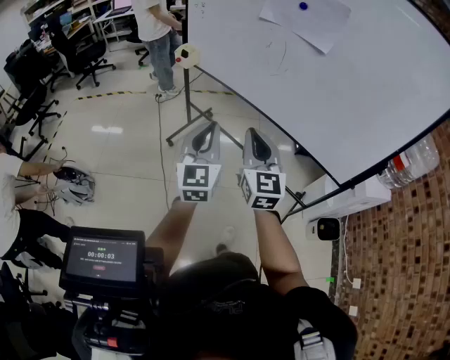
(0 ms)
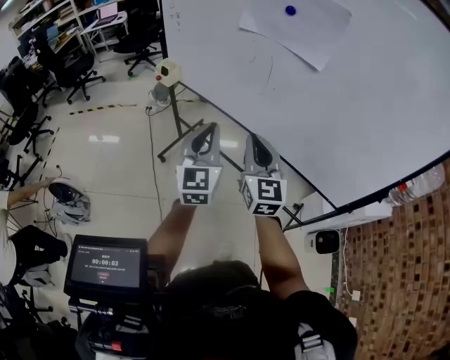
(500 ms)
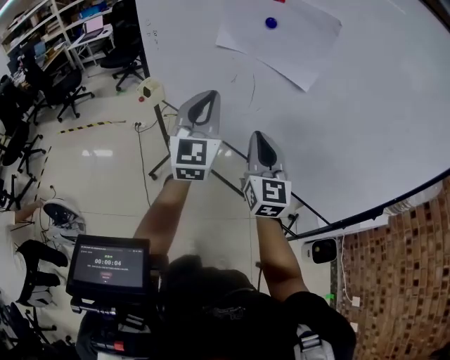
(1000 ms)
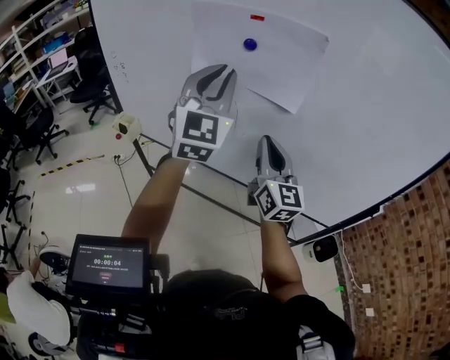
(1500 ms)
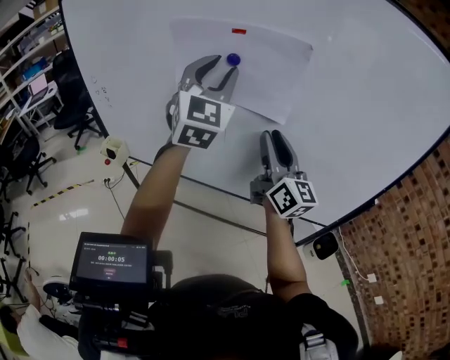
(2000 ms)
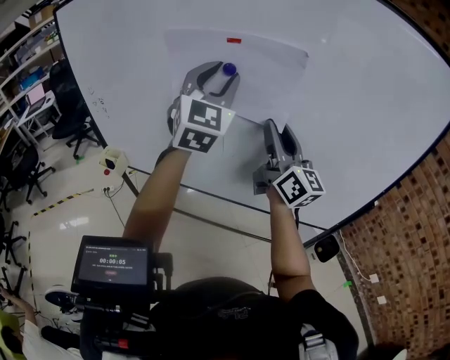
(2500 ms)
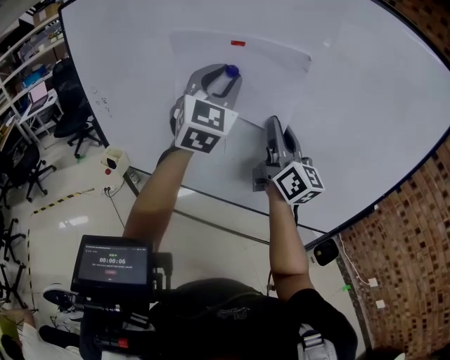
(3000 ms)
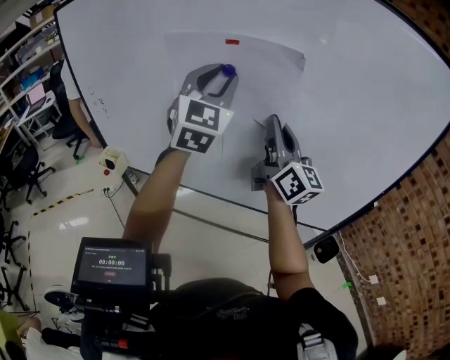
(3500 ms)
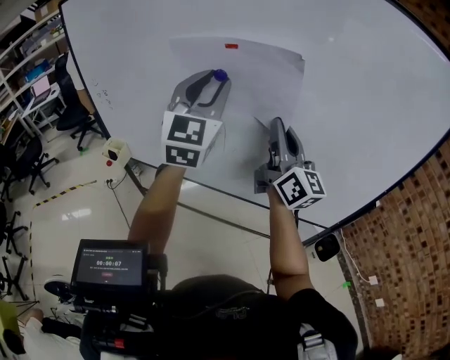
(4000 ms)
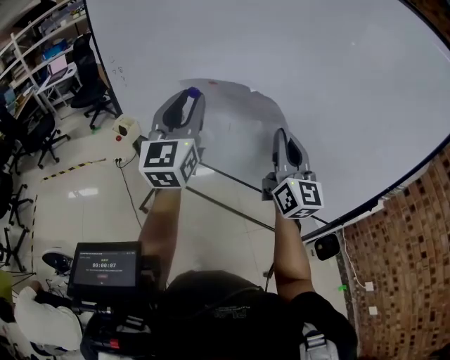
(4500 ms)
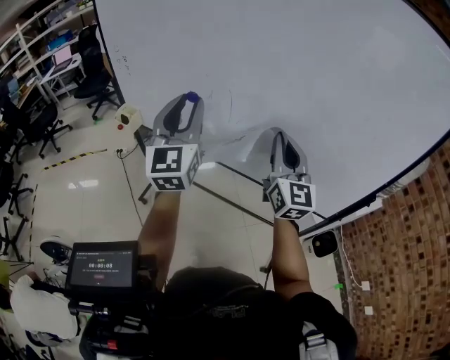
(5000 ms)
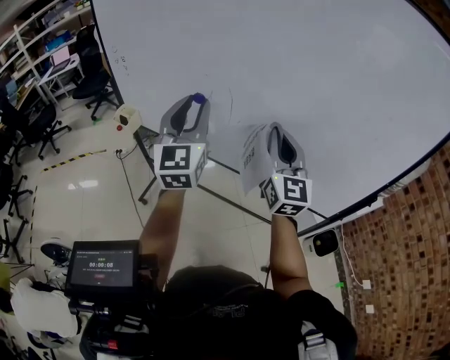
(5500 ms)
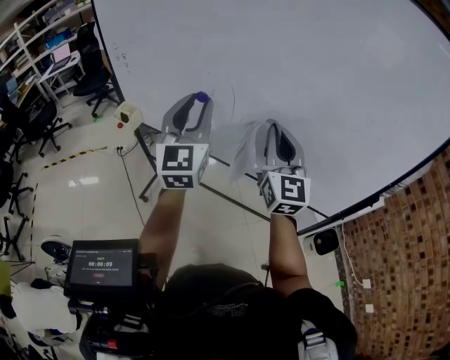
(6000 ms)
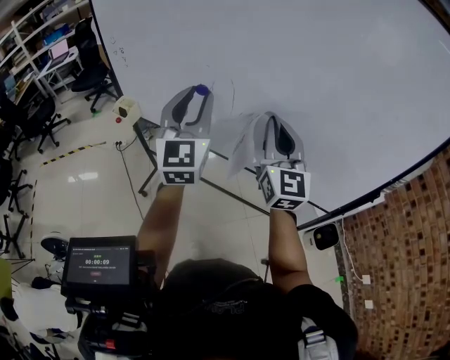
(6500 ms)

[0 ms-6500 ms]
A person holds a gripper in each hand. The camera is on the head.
0 ms to 2000 ms: The left gripper travels forward and upward by about 40 cm, turns by about 40 degrees, and opens; the right gripper heads forward, to the right and upward, covering about 35 cm, changes its angle by approximately 30 degrees, and opens its fingers.
2000 ms to 4500 ms: The right gripper closes its fingers, while the left gripper travels backward, downward and to the left by some 15 cm, and swivels roughly 30 degrees.
4500 ms to 6500 ms: The grippers move only a little.

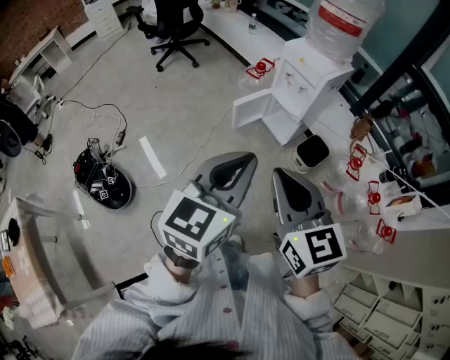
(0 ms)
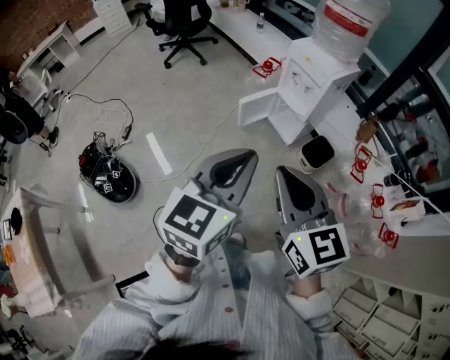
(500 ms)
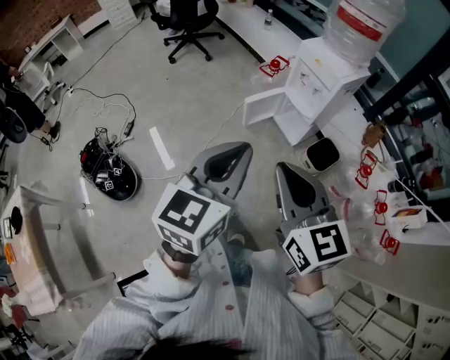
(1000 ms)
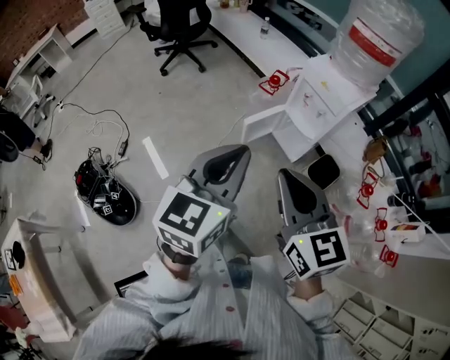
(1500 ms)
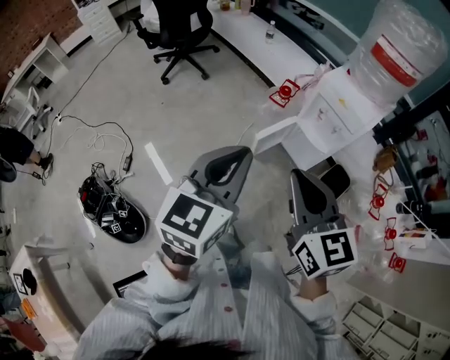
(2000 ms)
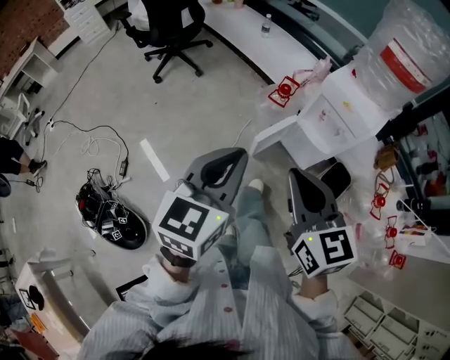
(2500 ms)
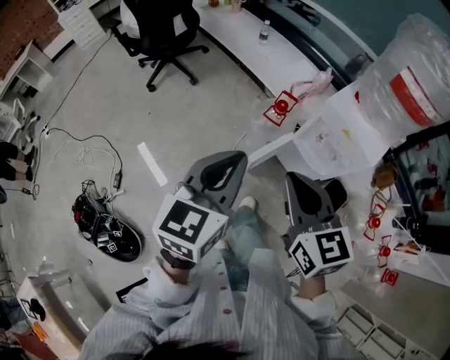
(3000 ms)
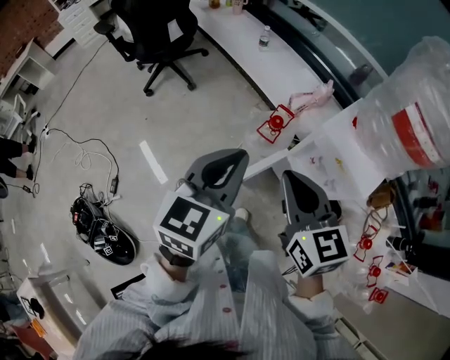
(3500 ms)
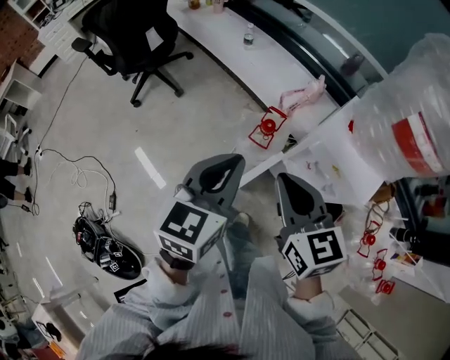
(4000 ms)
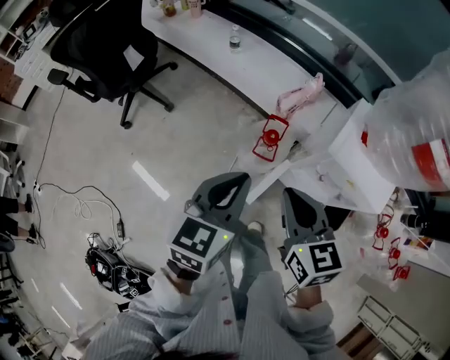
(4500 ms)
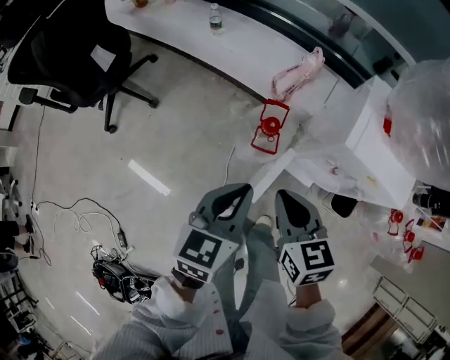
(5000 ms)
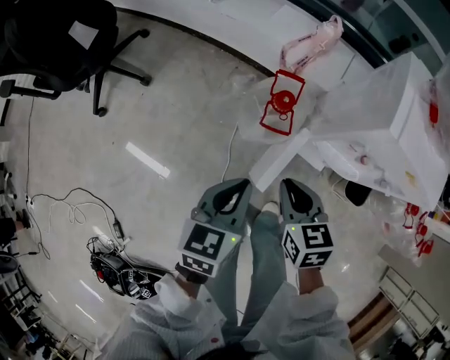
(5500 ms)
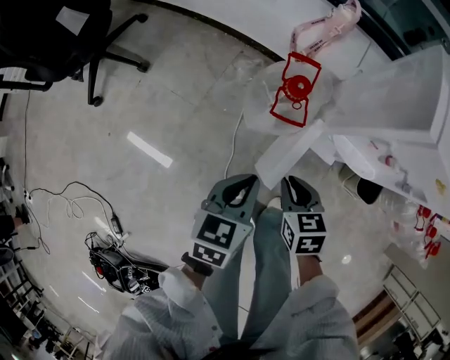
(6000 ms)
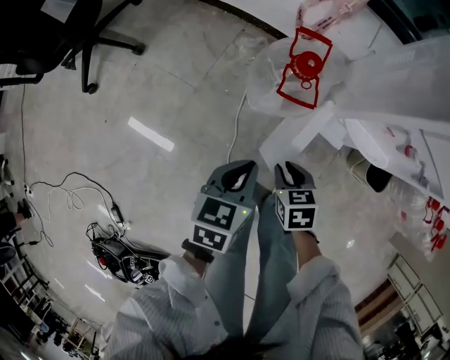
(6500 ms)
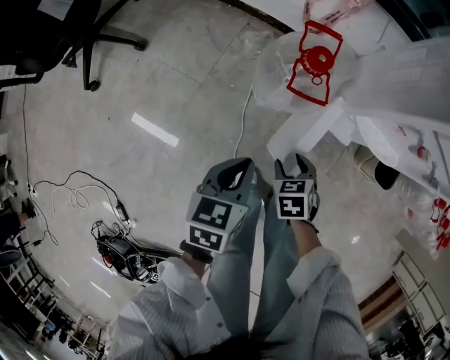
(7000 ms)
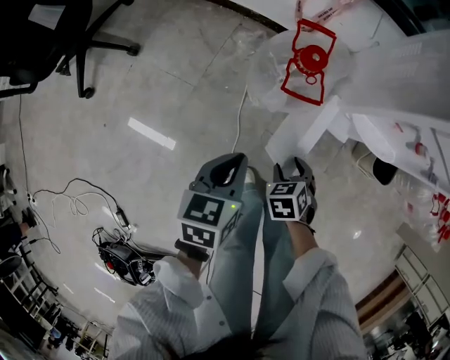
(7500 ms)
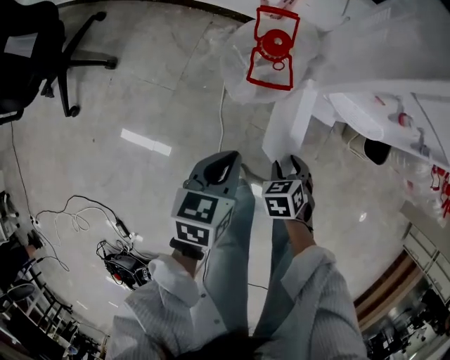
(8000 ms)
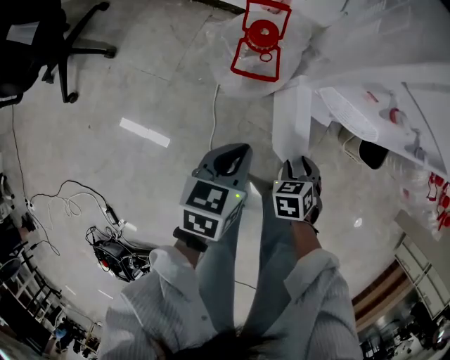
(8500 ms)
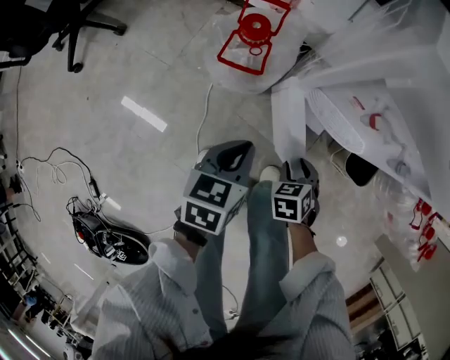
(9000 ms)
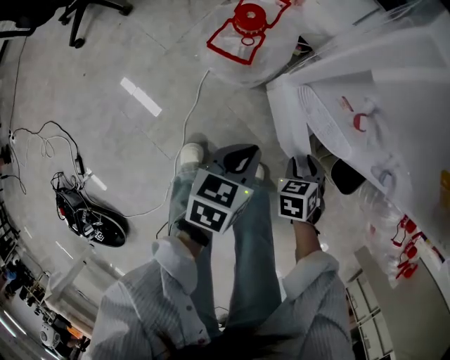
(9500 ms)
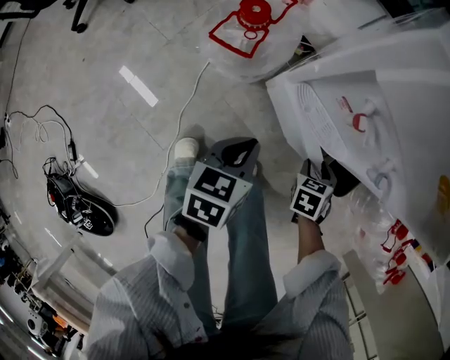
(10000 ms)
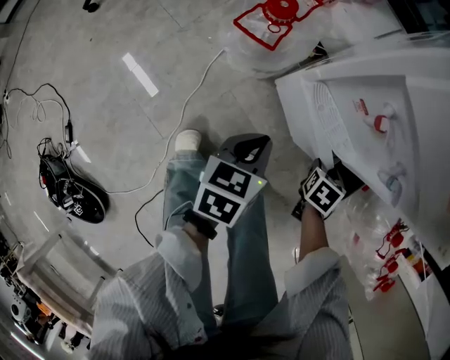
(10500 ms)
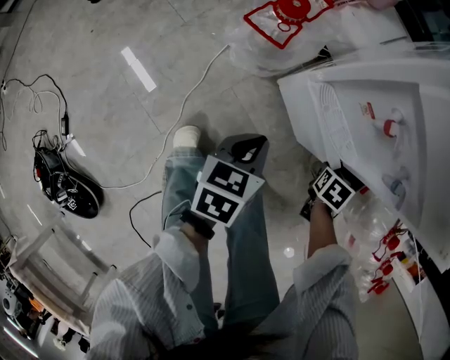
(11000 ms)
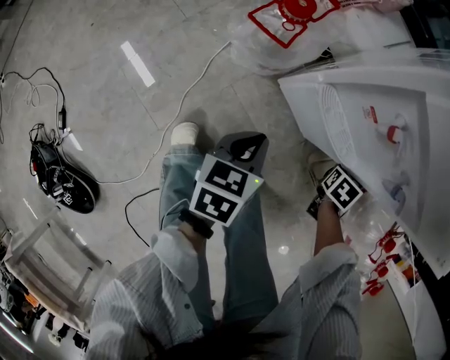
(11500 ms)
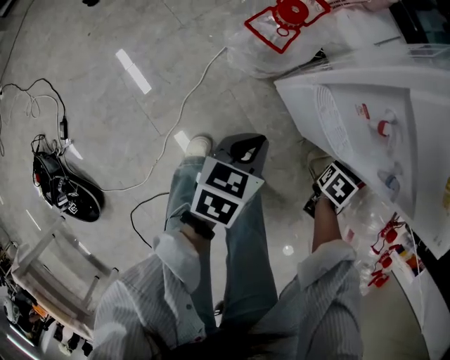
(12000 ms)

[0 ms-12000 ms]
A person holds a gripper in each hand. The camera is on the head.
0 ms to 2000 ms: Both grippers travel together forward and to the left, about 30 cm.
2000 ms to 4000 ms: The two grippers go about 35 cm forward.
4000 ms to 6000 ms: Both grippers travel together downward, some 40 cm. The left gripper rotates some 30 degrees; the right gripper angles its fingers downward, by some 30 degrees.
6000 ms to 8000 ms: The left gripper goes about 10 cm downward. The right gripper travels downward by roughly 15 cm, changes its angle by roughly 30 degrees, and opens up.
8000 ms to 10000 ms: The right gripper heads to the right and forward, covering approximately 30 cm. Meanwhile the left gripper goes approximately 20 cm to the right.
10000 ms to 12000 ms: The right gripper ends up some 5 cm from where it was, and closes its fingers.

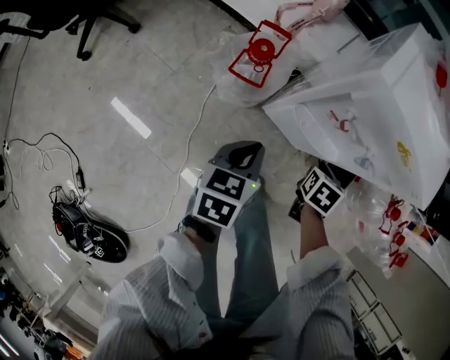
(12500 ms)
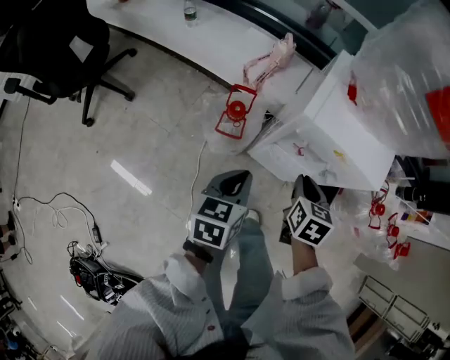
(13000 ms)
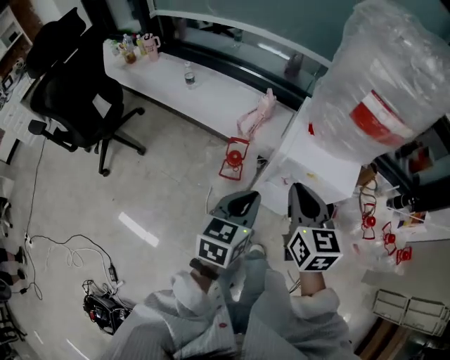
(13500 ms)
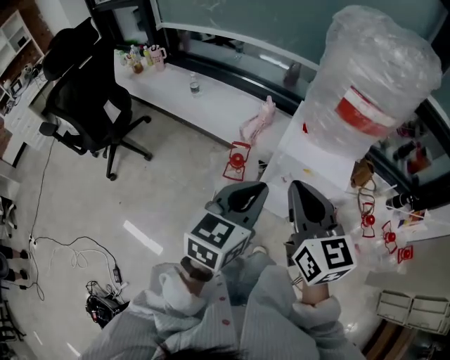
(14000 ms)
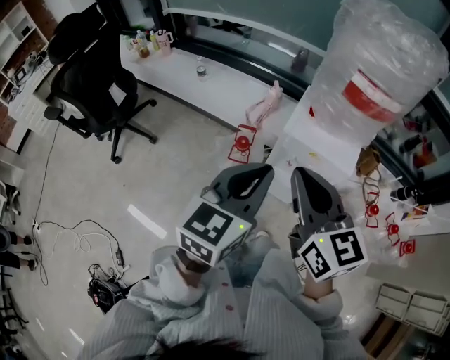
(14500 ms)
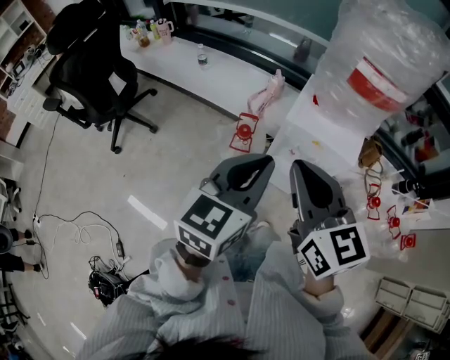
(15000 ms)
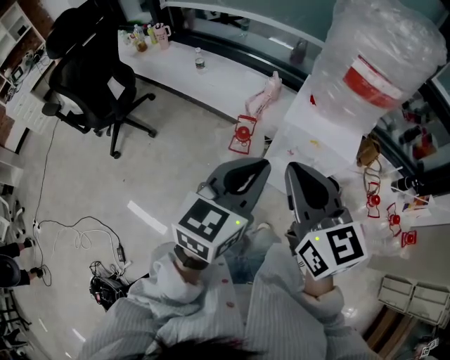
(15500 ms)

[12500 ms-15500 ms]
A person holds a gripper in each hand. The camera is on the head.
12500 ms to 14000 ms: The grippers both shift upward by some 50 cm. The right gripper tips its fingers upward by some 50 degrees, while the left gripper swivels about 30 degrees.
14000 ms to 15500 ms: The left gripper shifts by roughly 5 cm. The right gripper shifts about 5 cm backward.

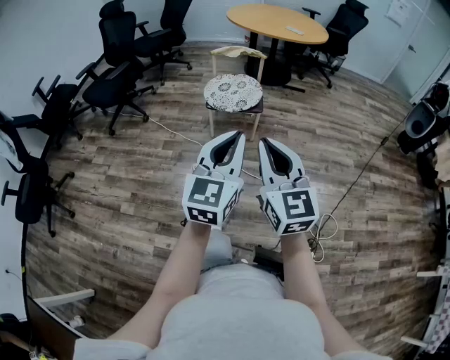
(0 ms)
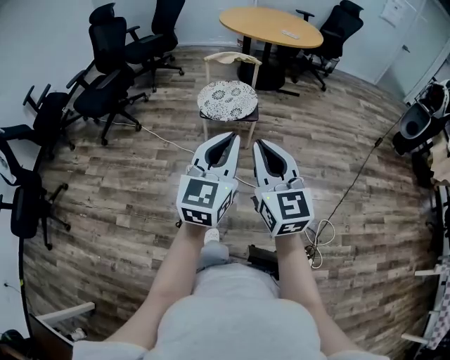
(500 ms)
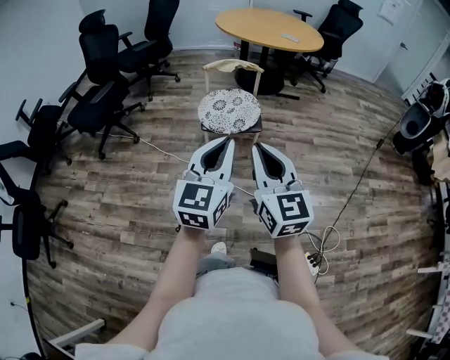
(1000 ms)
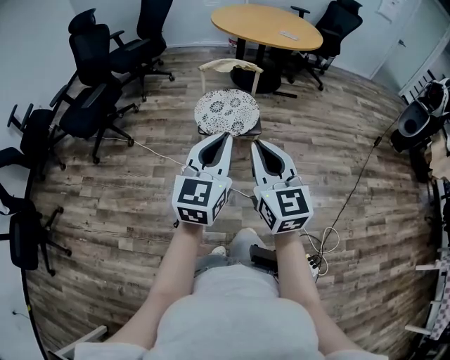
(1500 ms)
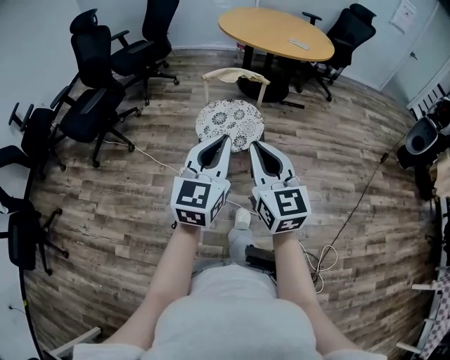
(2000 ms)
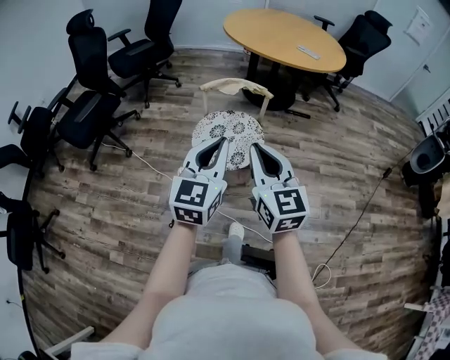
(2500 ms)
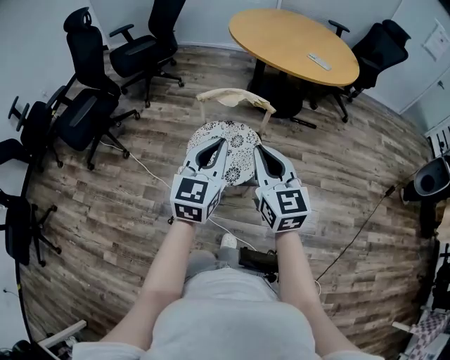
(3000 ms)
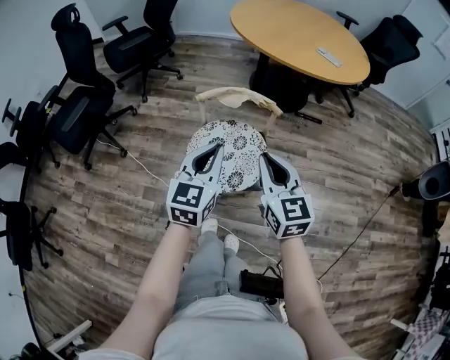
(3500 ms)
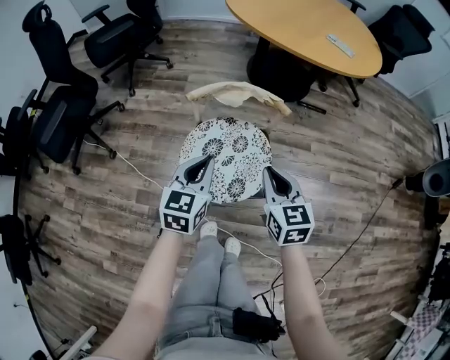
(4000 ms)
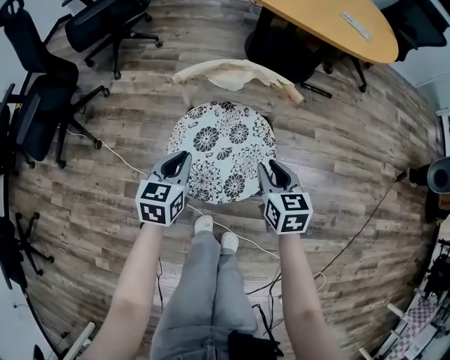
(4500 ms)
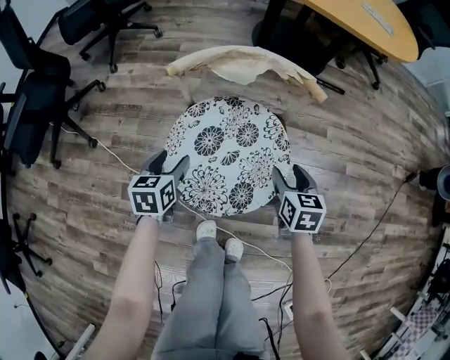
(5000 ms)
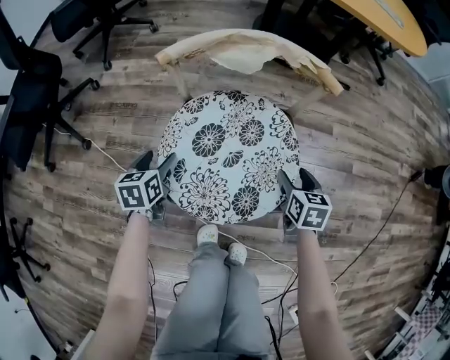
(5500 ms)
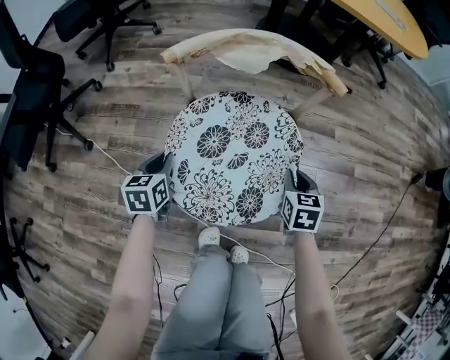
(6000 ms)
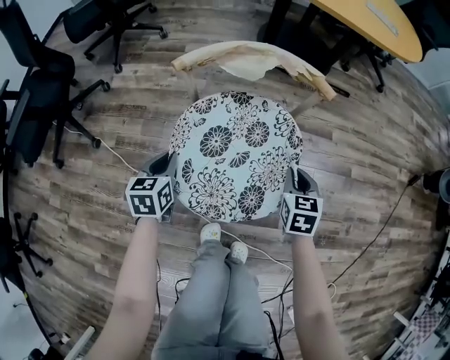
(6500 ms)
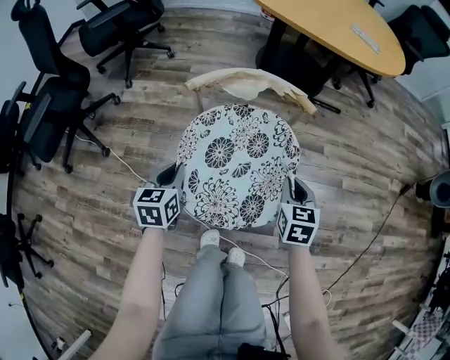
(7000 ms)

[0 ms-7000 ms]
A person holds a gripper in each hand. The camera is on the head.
0 ms to 2000 ms: The two grippers go approximately 30 cm forward.
2000 ms to 3500 ms: The grippers both shift forward by approximately 30 cm.
3500 ms to 5000 ms: Both grippers travel together downward, approximately 40 cm. The left gripper tilts its fingers some 30 degrees downward, and opens up. Meanwhile the right gripper tilts its fingers roughly 30 degrees downward, and opens.
5000 ms to 7000 ms: Both grippers move upward, approximately 10 cm. The left gripper closes its fingers; the right gripper closes up.
